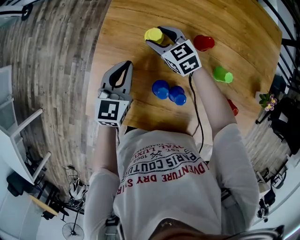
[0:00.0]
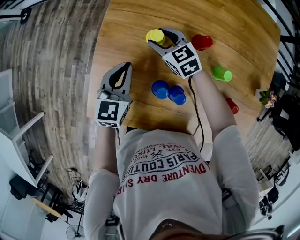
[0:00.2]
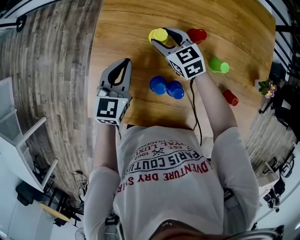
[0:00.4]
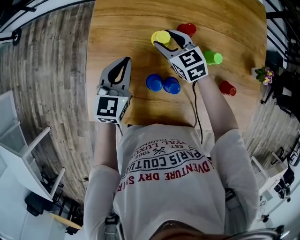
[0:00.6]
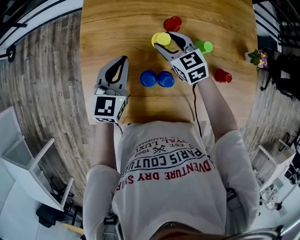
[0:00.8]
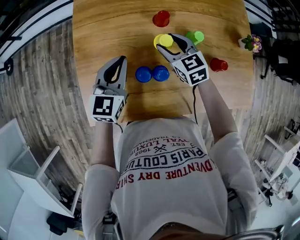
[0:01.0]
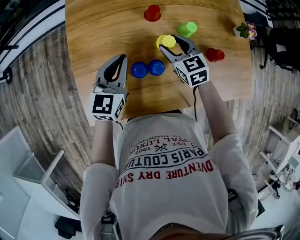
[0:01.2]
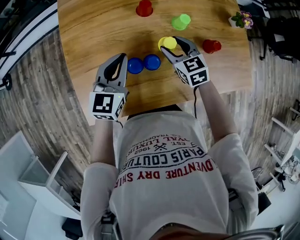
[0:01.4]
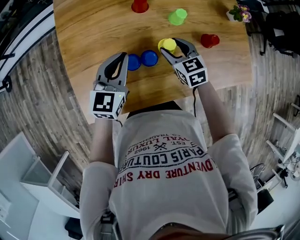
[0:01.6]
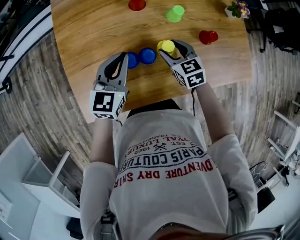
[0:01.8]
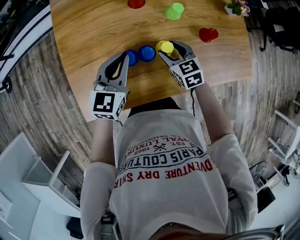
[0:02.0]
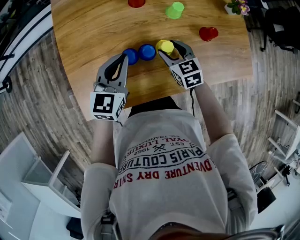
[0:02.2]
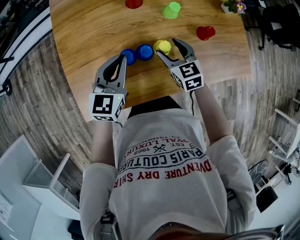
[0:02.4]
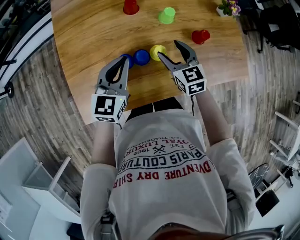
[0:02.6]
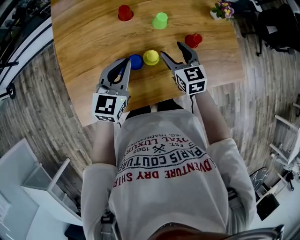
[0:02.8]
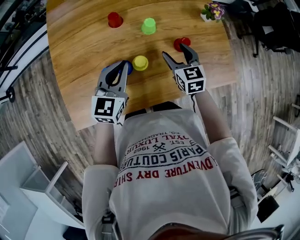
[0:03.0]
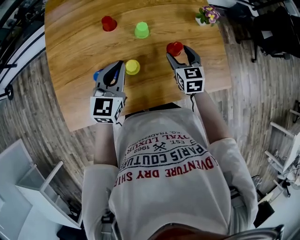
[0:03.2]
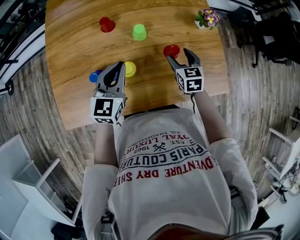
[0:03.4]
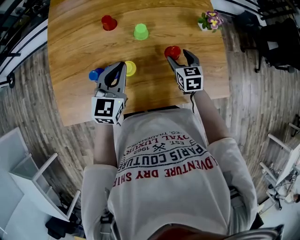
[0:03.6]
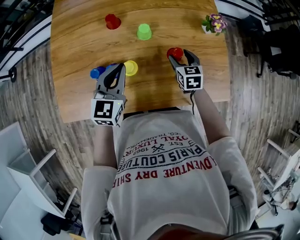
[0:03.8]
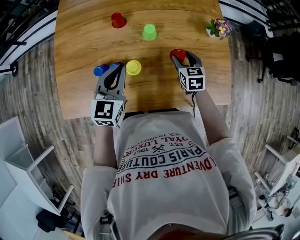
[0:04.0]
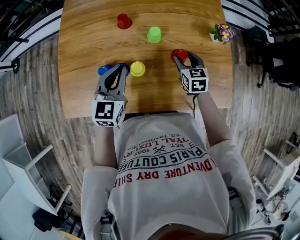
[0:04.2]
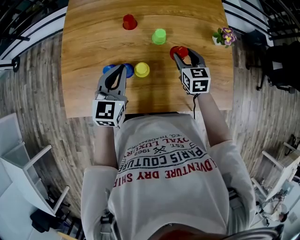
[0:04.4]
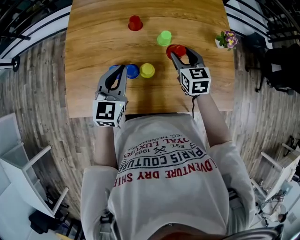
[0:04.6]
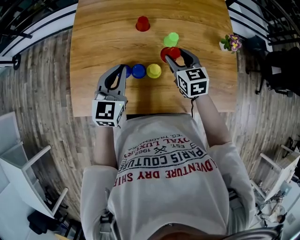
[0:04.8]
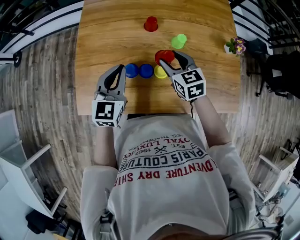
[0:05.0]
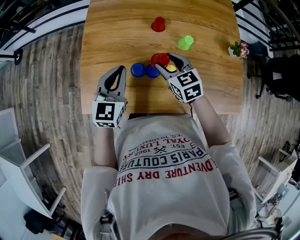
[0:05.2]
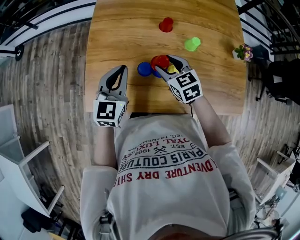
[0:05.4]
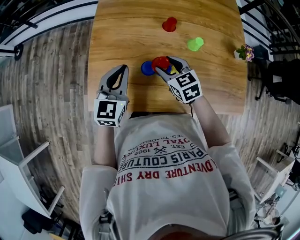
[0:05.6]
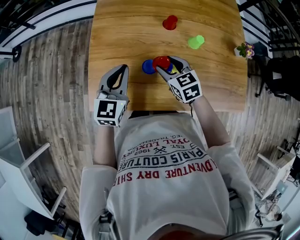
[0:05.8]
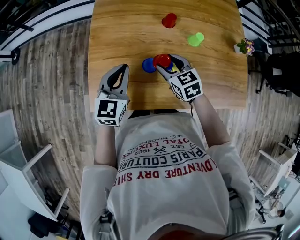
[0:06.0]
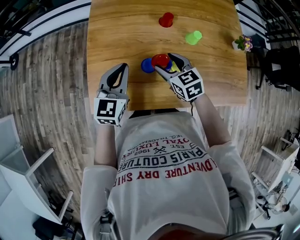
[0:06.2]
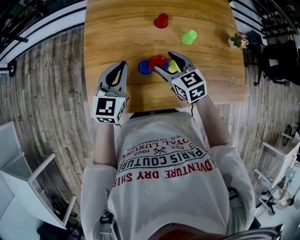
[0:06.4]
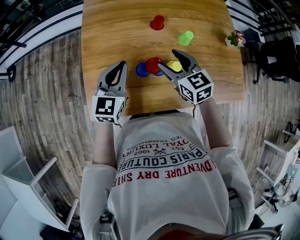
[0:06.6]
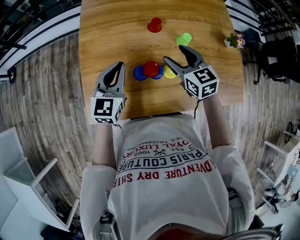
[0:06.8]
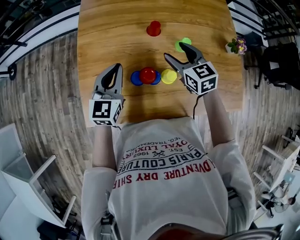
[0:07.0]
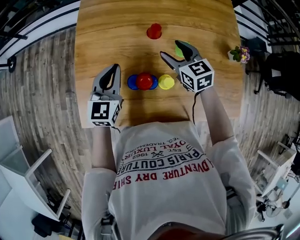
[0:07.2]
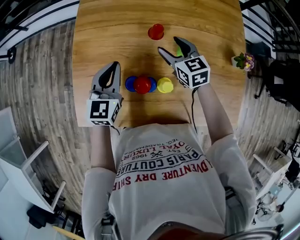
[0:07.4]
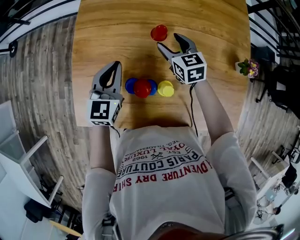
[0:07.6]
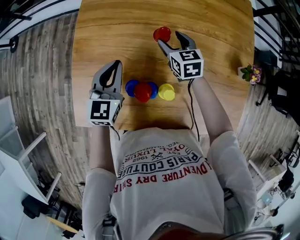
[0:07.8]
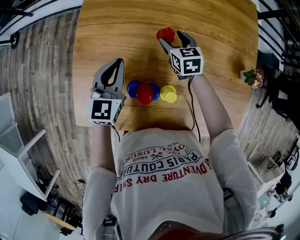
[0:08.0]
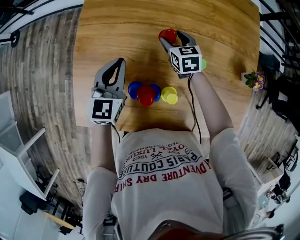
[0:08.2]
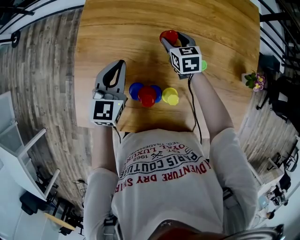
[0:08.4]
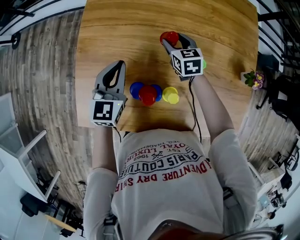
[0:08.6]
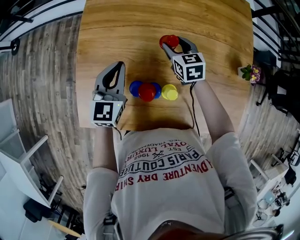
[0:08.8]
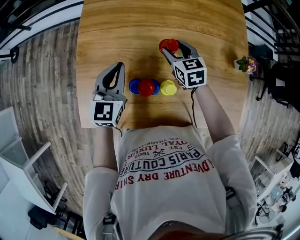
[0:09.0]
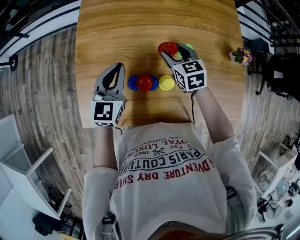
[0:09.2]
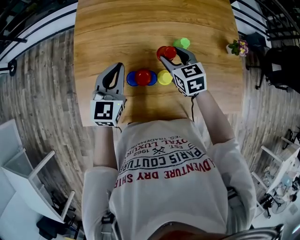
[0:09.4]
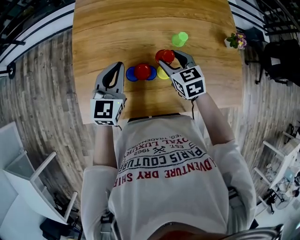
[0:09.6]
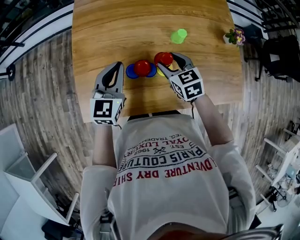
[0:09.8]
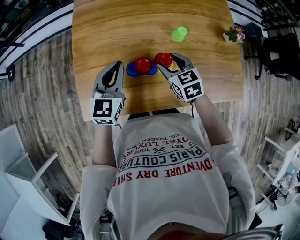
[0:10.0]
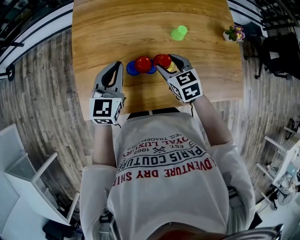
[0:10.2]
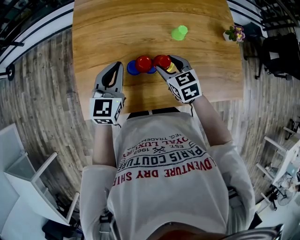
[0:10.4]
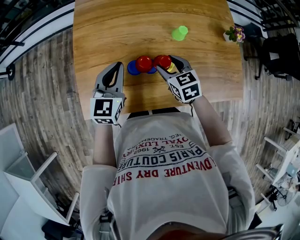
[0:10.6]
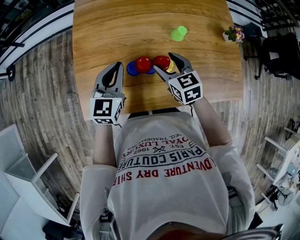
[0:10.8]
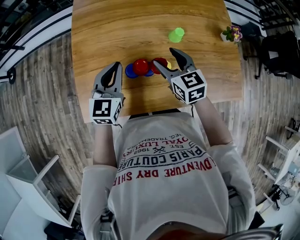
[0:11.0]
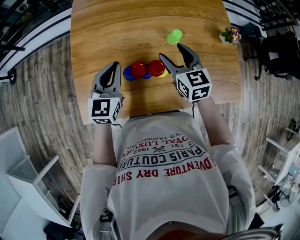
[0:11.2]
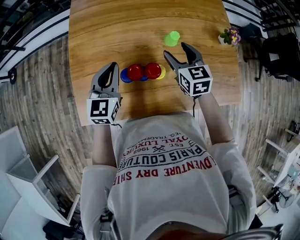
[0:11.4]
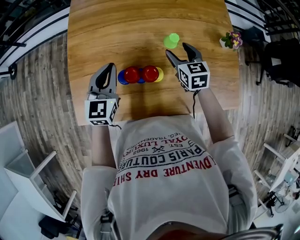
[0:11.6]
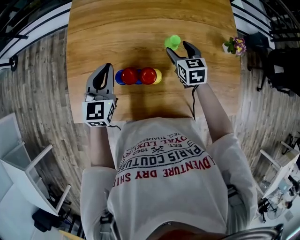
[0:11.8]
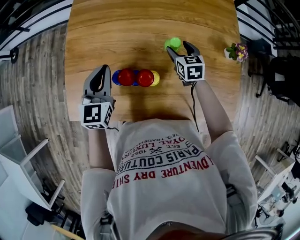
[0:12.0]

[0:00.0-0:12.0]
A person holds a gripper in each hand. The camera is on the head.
0:00.0 to 0:01.6: The right gripper moves approximately 30 cm, and turns by some 40 degrees. The left gripper ends up about 15 cm from where it was, and swivels roughly 30 degrees.
0:01.6 to 0:03.0: The two grippers go about 10 cm to the right.
0:03.0 to 0:04.4: The right gripper moves forward, some 5 cm, and reaches approximately 10 cm to the right, then returns.
0:04.4 to 0:06.0: The two grippers go approximately 25 cm to the left. The right gripper changes its angle by some 20 degrees.
0:06.0 to 0:07.6: The right gripper goes approximately 20 cm forward and to the right. Meanwhile the left gripper heads forward and to the right, covering roughly 15 cm.
0:07.6 to 0:09.0: The right gripper moves about 5 cm forward and comes back.
0:09.0 to 0:10.4: The right gripper moves backward, some 15 cm, while the left gripper is displaced backward by roughly 10 cm.
0:10.4 to 0:12.0: The right gripper shifts some 20 cm forward and to the right.

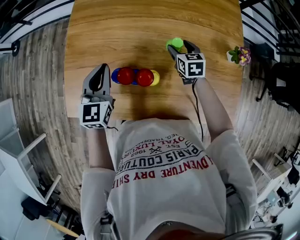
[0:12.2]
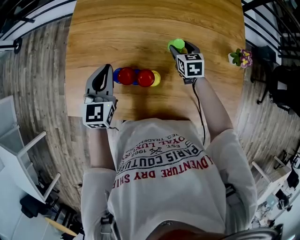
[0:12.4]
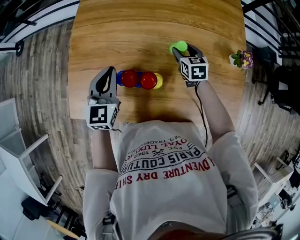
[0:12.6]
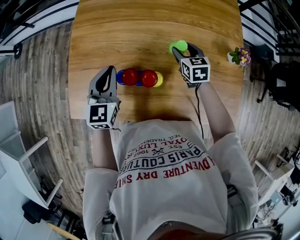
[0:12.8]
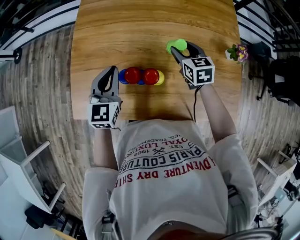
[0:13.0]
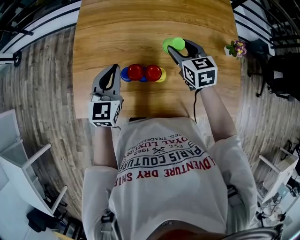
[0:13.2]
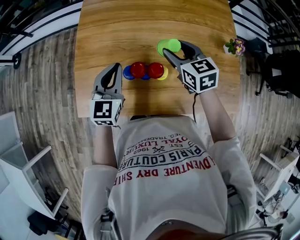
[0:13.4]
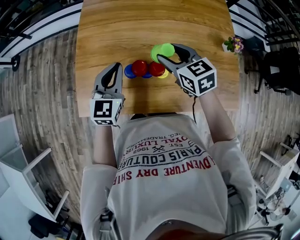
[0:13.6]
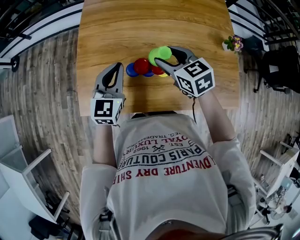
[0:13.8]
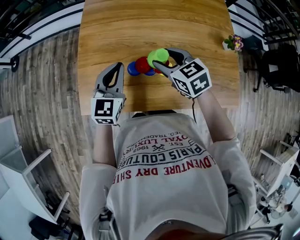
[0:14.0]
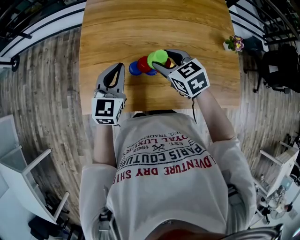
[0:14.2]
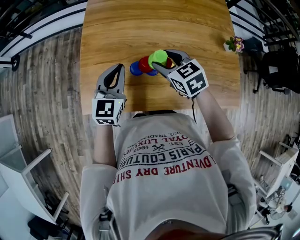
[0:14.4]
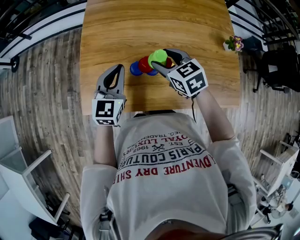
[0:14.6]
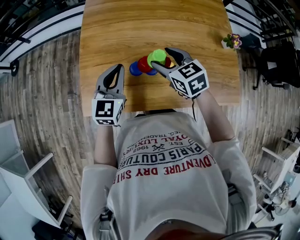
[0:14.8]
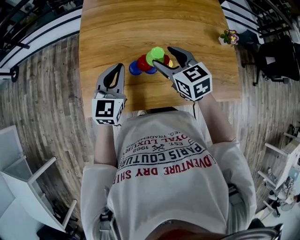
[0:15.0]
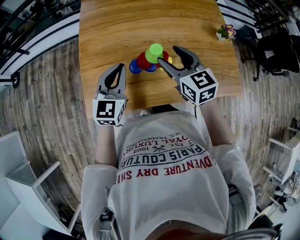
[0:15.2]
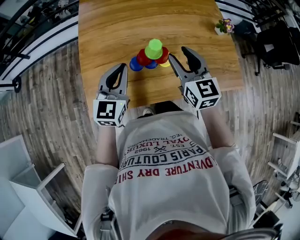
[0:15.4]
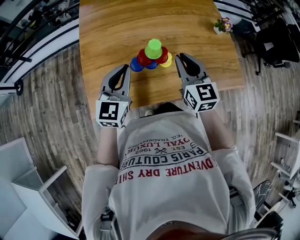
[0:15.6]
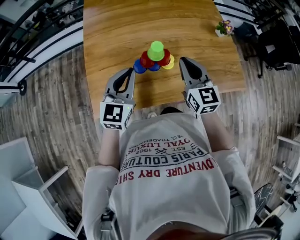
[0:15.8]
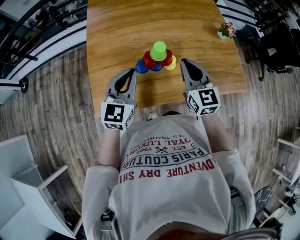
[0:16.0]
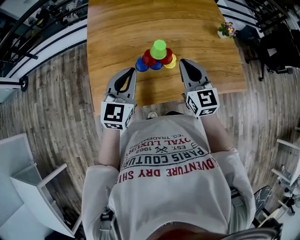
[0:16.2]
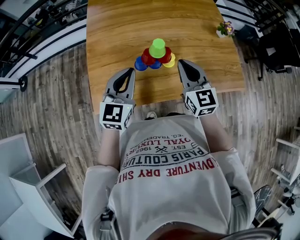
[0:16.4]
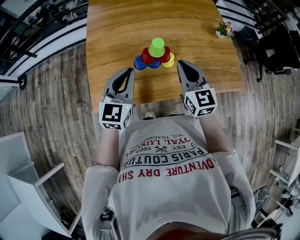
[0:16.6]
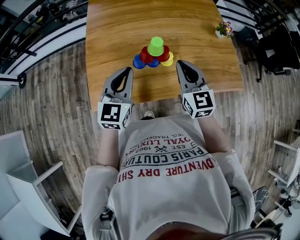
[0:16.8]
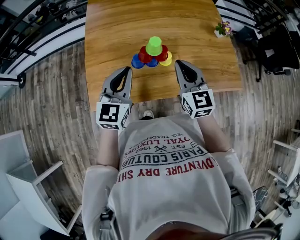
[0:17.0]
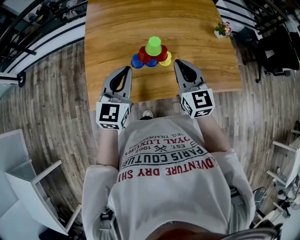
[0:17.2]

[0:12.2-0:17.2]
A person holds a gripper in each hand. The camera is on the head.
0:12.2 to 0:13.8: The left gripper ends up roughly 5 cm from where it was; the right gripper shifts some 25 cm upward, to the left and backward.
0:13.8 to 0:15.6: The left gripper heads backward, covering about 5 cm. The right gripper shifts some 10 cm backward, changes its angle by roughly 40 degrees, and closes its fingers.
0:15.6 to 0:17.2: There are only small adjustments of the grippers.

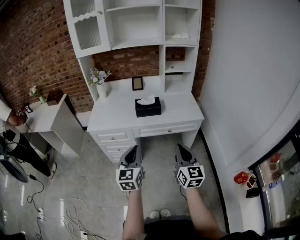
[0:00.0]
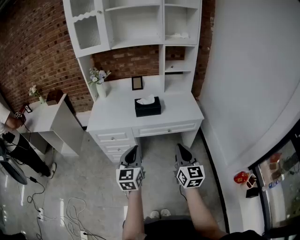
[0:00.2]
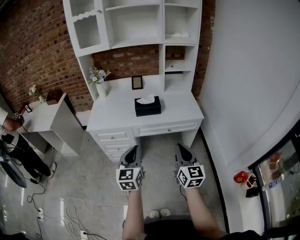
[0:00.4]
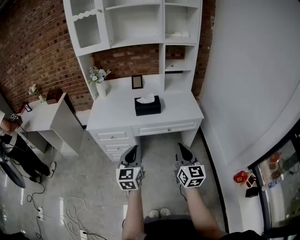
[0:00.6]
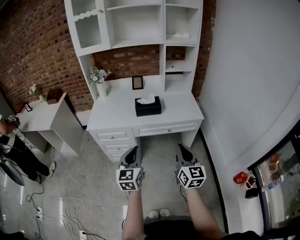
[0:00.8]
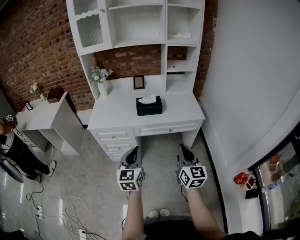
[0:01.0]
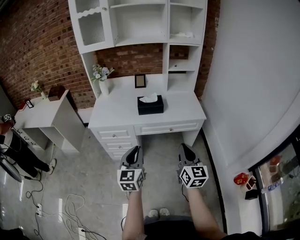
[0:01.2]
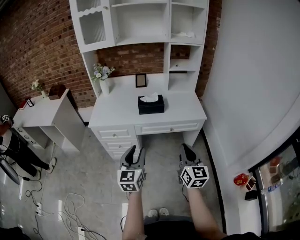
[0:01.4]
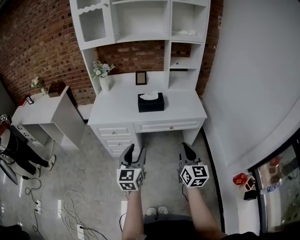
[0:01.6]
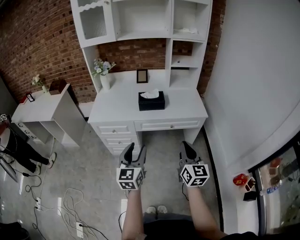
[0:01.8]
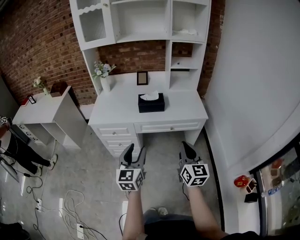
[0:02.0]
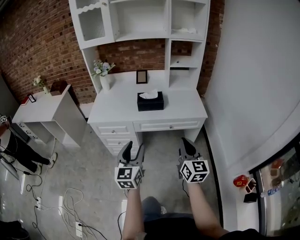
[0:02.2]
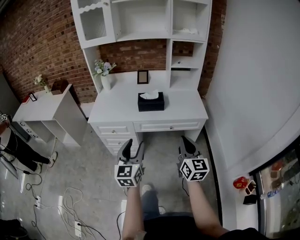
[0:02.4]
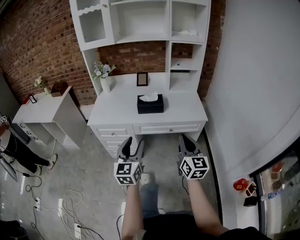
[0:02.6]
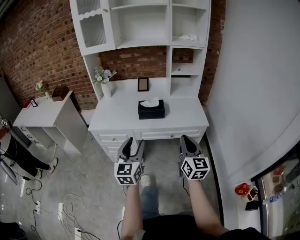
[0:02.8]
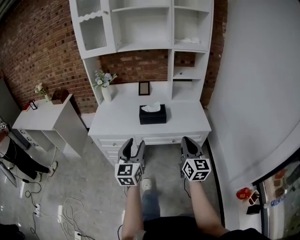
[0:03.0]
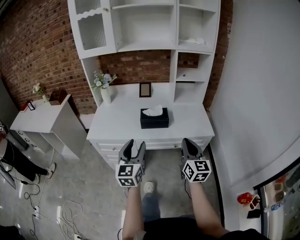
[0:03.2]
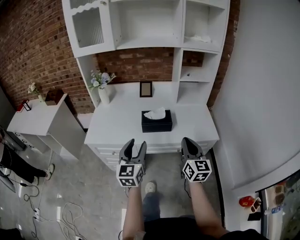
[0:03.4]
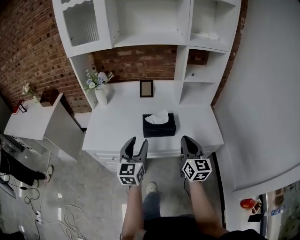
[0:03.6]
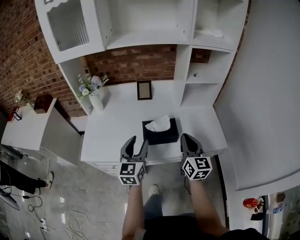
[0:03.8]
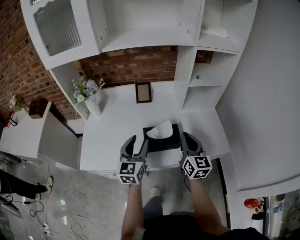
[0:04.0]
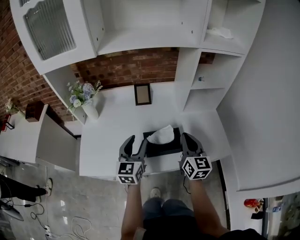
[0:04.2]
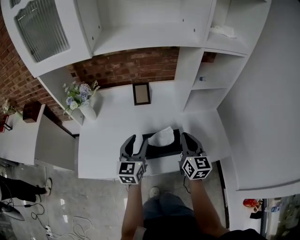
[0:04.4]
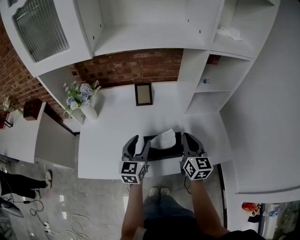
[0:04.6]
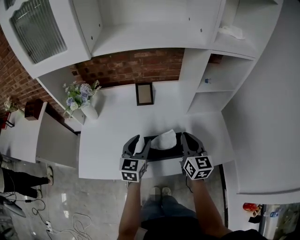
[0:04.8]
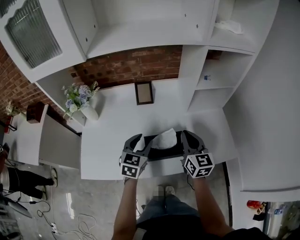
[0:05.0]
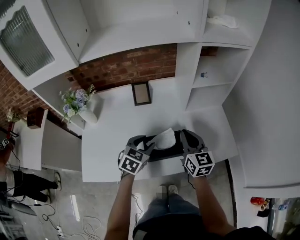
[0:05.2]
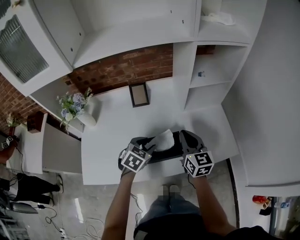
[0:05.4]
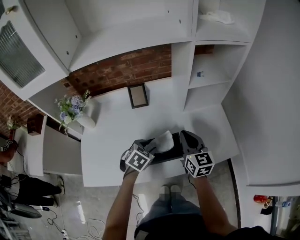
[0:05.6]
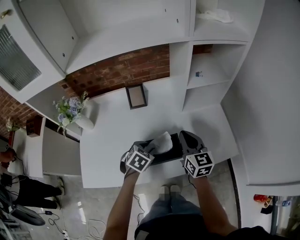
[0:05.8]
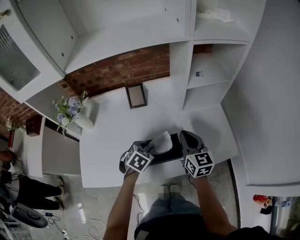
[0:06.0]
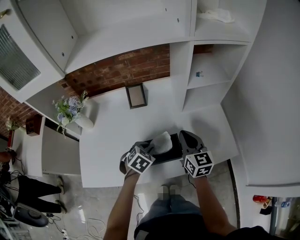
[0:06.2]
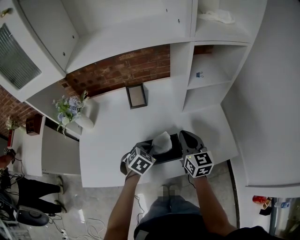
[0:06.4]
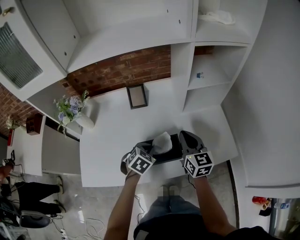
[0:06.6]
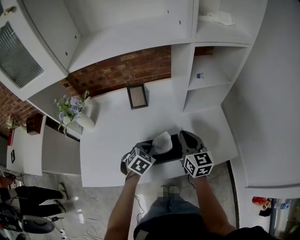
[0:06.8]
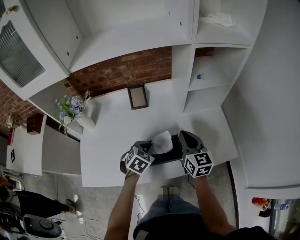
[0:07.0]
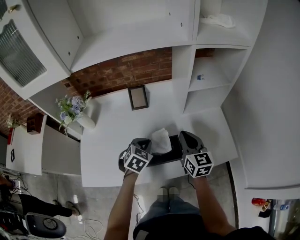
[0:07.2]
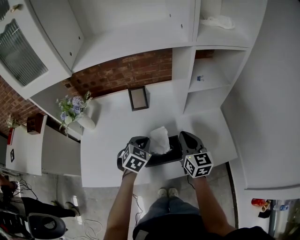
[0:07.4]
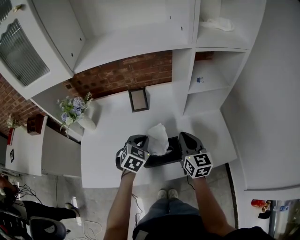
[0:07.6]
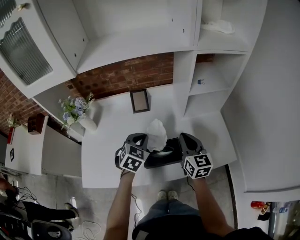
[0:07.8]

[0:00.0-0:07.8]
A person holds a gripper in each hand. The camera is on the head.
0:00.0 to 0:01.6: The left gripper opens up.
0:01.6 to 0:03.2: The grippers both shift forward by some 15 cm.
0:03.2 to 0:04.6: Both grippers move forward, approximately 35 cm.
0:04.6 to 0:06.2: The left gripper heads downward and to the right, covering roughly 15 cm, angles its fingers downward, by roughly 50 degrees, and closes.
0:06.2 to 0:07.8: The left gripper heads upward, covering about 10 cm, and swivels approximately 20 degrees.
